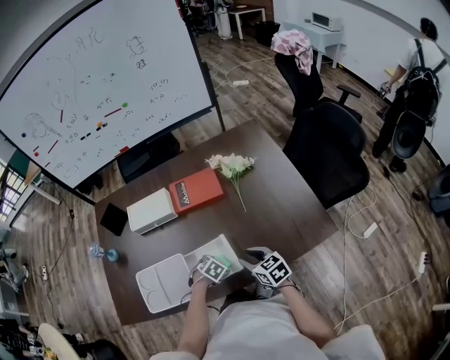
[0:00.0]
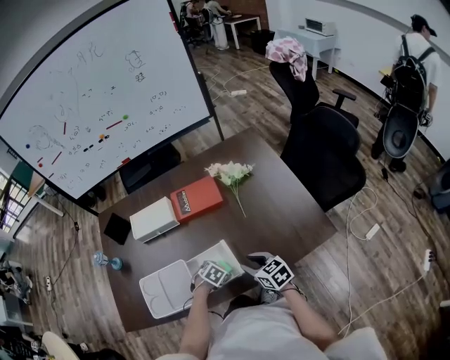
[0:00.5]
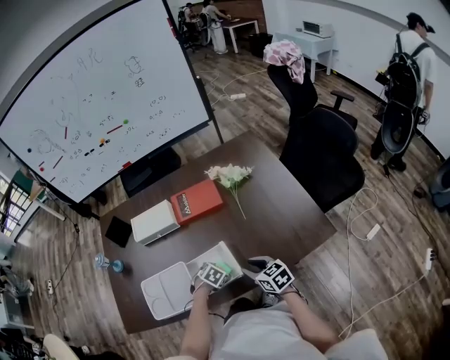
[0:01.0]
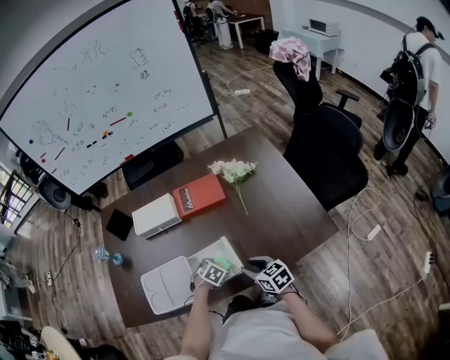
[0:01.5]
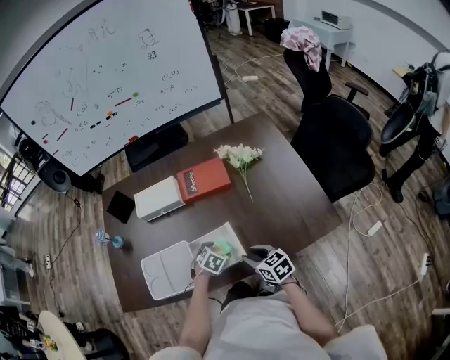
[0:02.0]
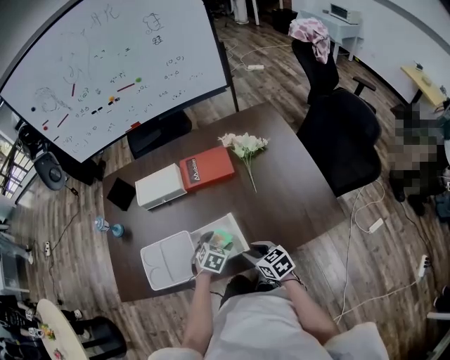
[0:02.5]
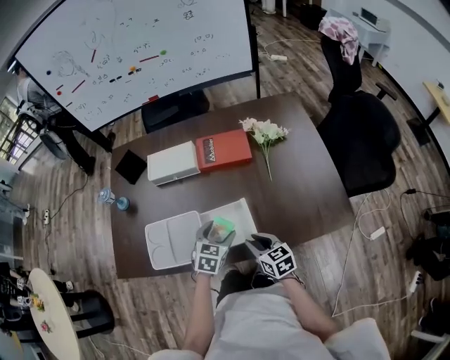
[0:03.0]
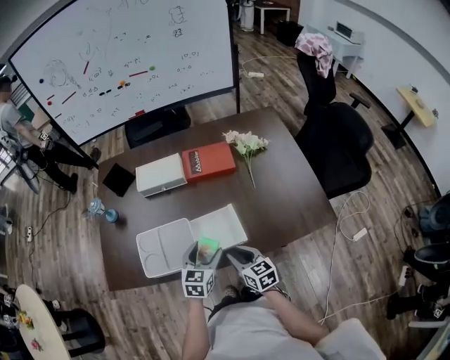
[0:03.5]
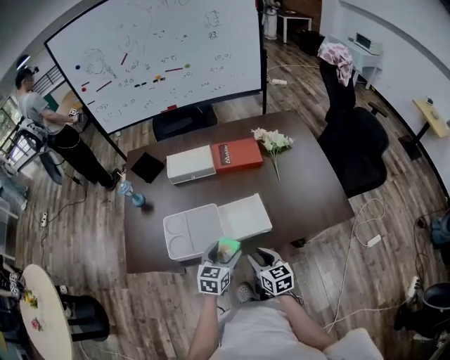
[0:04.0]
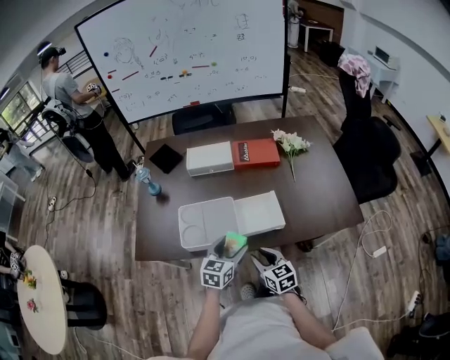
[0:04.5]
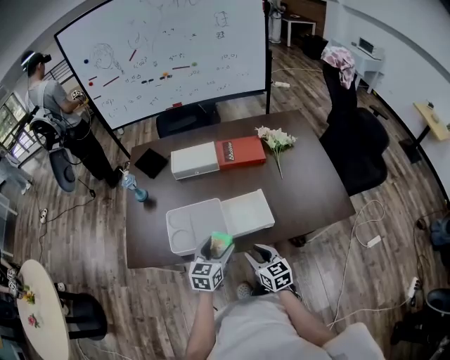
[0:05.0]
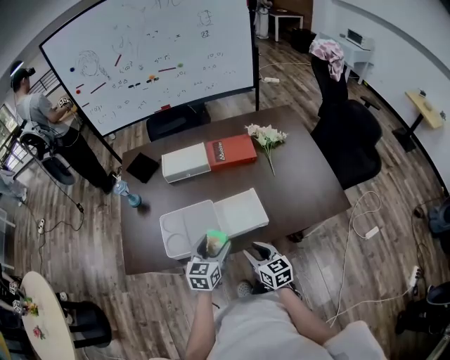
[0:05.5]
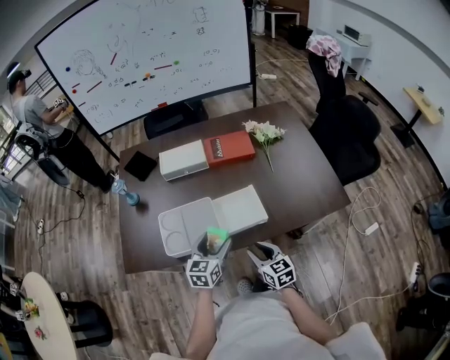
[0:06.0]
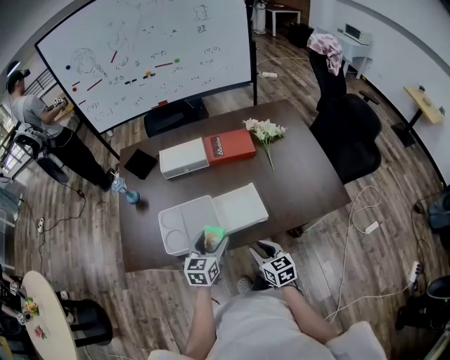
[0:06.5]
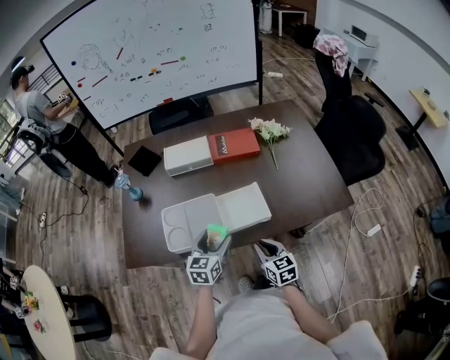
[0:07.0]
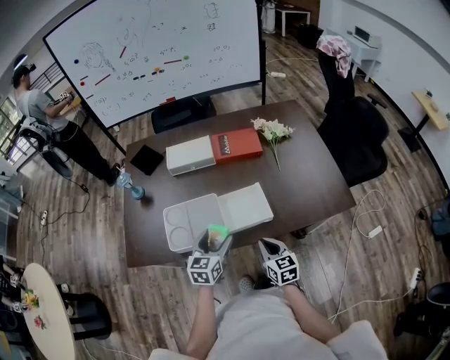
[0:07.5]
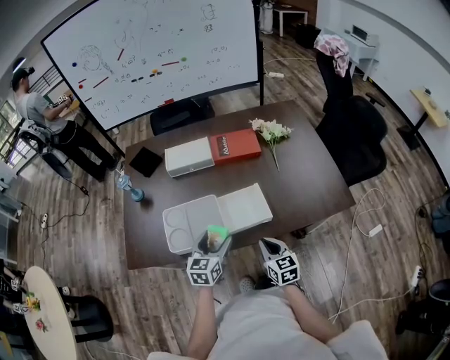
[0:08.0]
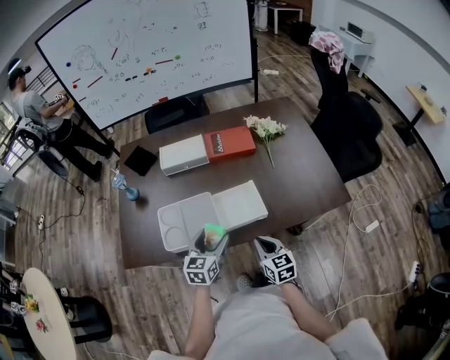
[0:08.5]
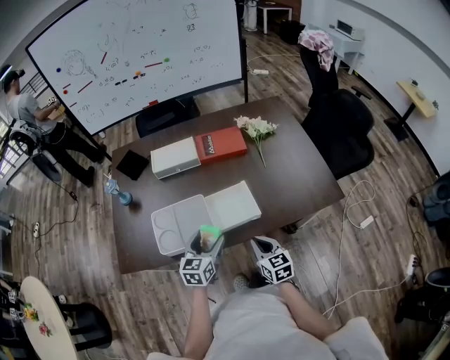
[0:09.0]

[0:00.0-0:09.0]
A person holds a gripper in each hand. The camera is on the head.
0:00.0 to 0:02.0: The grippers stay close to where they were, moving slightly.
0:02.0 to 0:04.5: The left gripper shifts some 25 cm upward, backward and to the left, and tips its fingers upward by about 40 degrees; the right gripper heads to the left and backward, covering about 20 cm.
0:04.5 to 0:07.0: The right gripper travels to the right by some 5 cm.
0:07.0 to 0:09.0: The grippers move only a little.

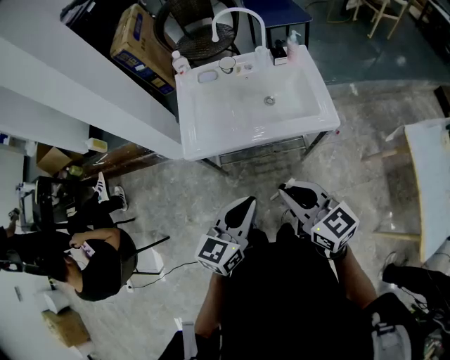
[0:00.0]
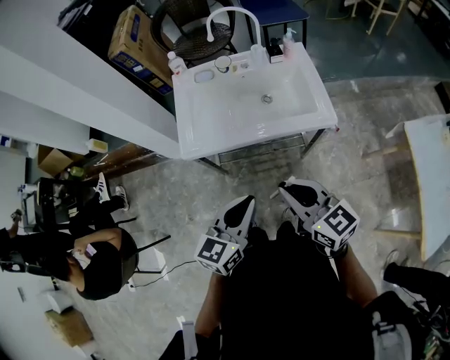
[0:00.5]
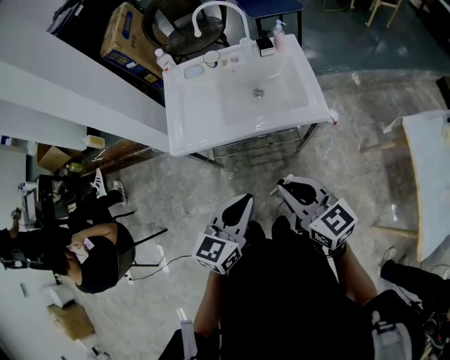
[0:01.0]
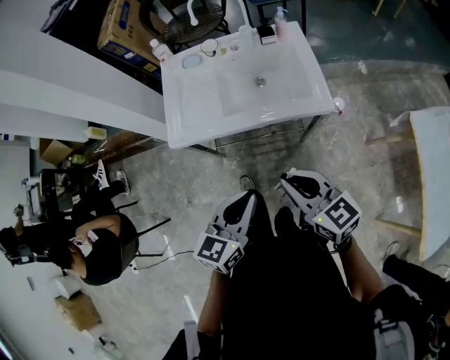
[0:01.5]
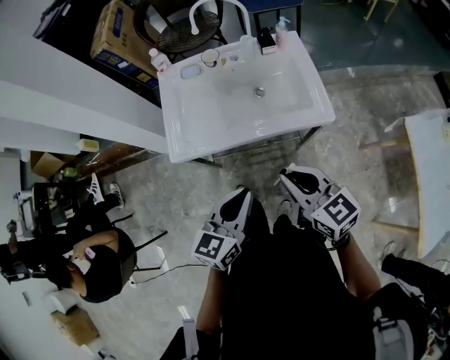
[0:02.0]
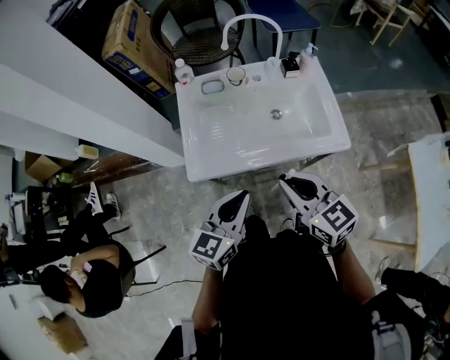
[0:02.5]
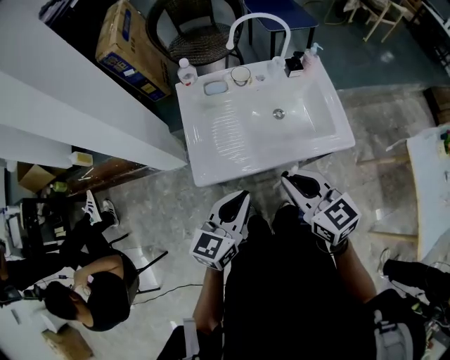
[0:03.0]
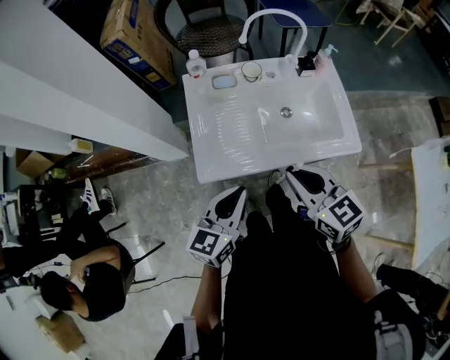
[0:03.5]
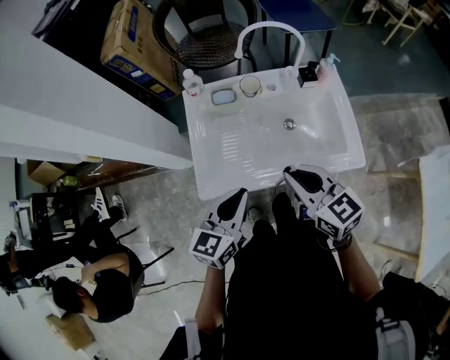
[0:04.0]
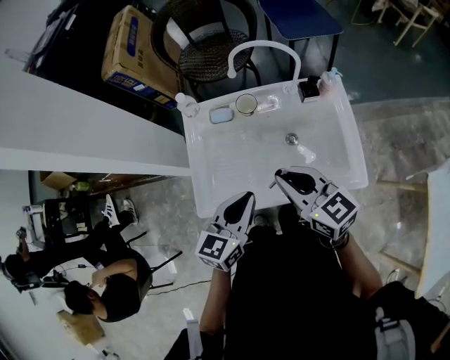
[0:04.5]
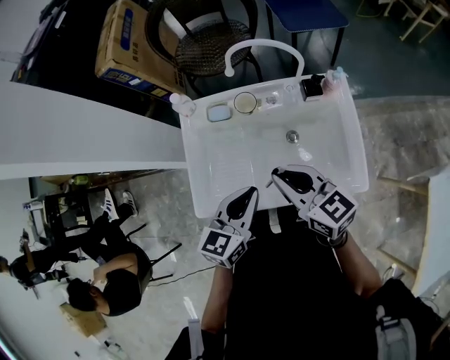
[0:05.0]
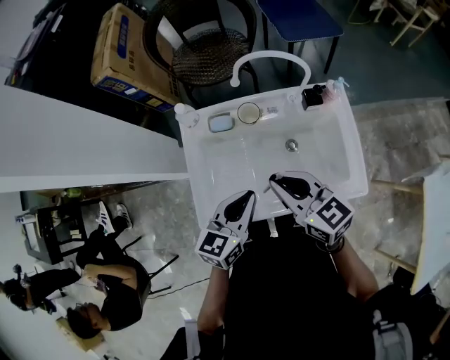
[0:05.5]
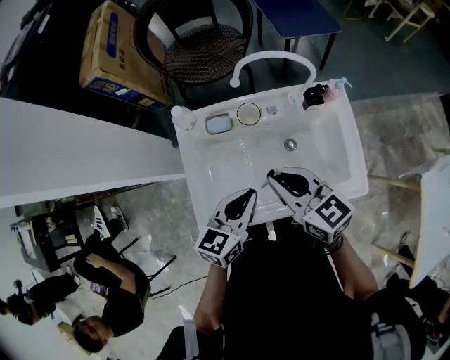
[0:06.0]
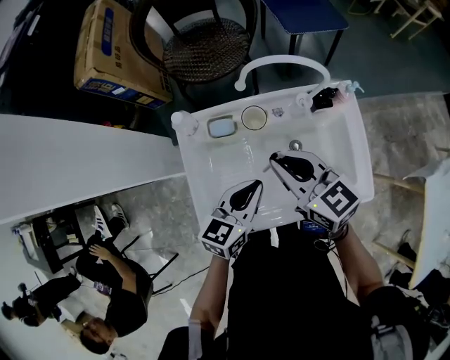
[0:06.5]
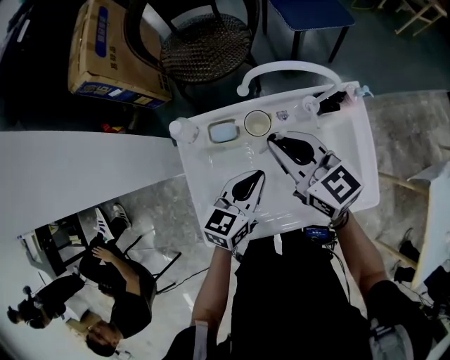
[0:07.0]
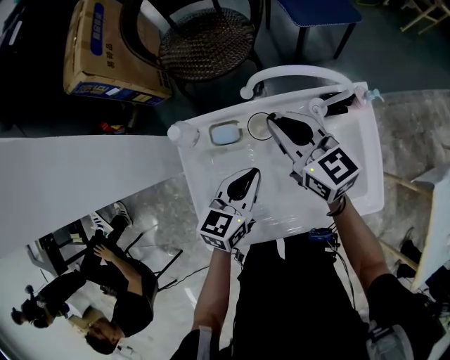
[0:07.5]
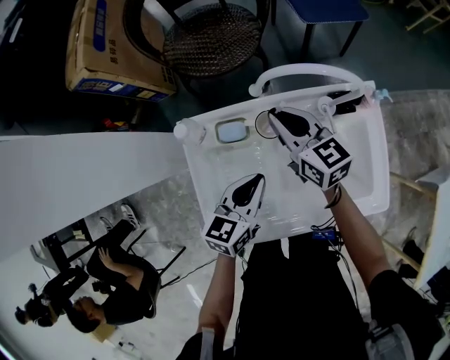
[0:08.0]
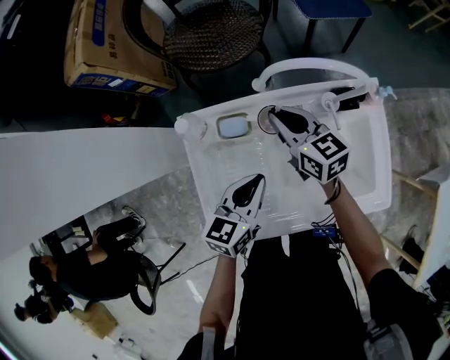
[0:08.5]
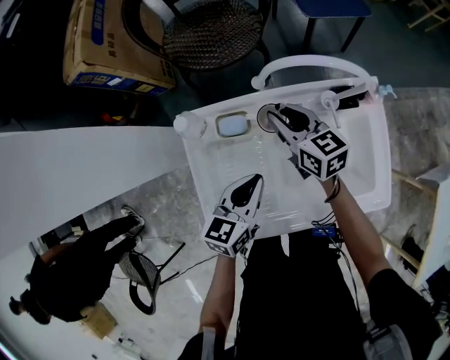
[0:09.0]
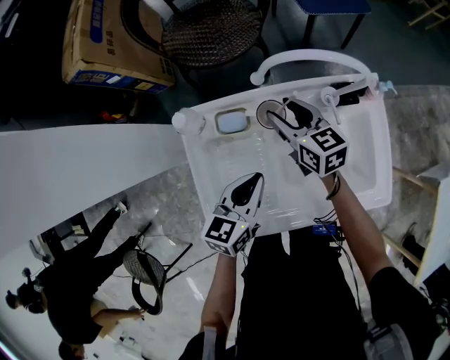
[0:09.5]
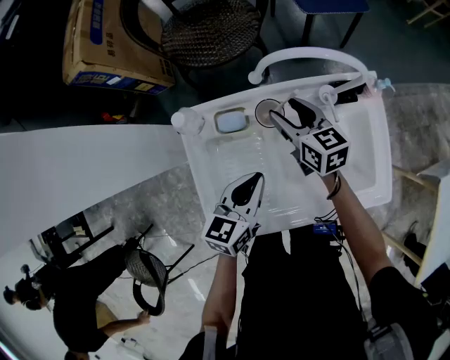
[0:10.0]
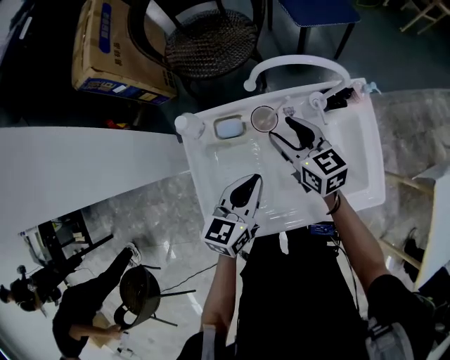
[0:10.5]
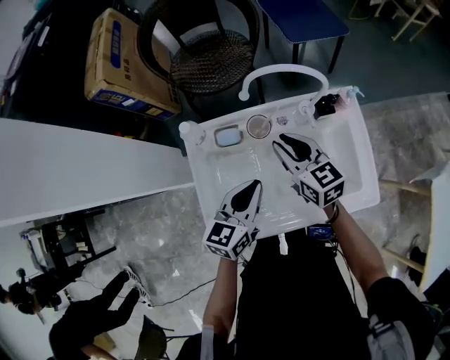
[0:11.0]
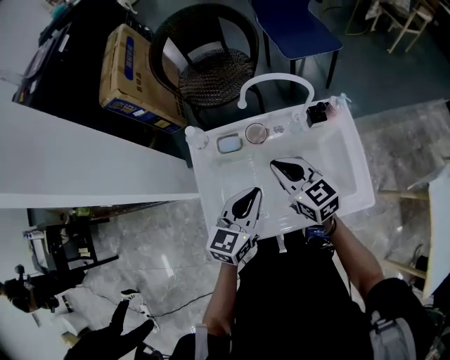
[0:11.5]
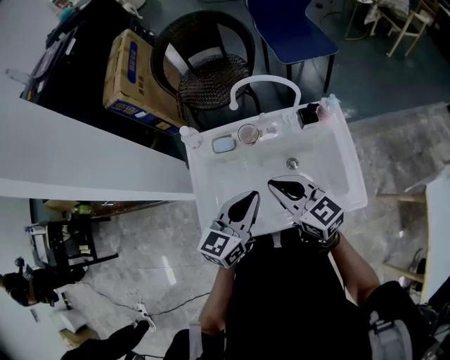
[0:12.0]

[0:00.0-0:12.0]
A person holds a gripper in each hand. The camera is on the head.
0:00.0 to 0:02.0: The left gripper ends up approximately 5 cm from where it was. The right gripper is displaced forward and to the right by roughly 10 cm.
0:02.0 to 0:04.0: The grippers both shift forward and to the left by approximately 20 cm.
0:04.0 to 0:06.0: The left gripper shifts roughly 15 cm forward and to the right. The right gripper is displaced forward by some 15 cm.
0:06.0 to 0:08.0: The left gripper is displaced forward and downward by approximately 15 cm; the right gripper is displaced forward and downward by roughly 25 cm.
0:08.0 to 0:10.0: The right gripper heads downward, covering roughly 5 cm, and opens its fingers.
0:10.0 to 0:12.0: The right gripper travels backward and upward by approximately 30 cm, rotates roughly 20 degrees, and closes up, while the left gripper heads upward, backward and to the right, covering about 15 cm.

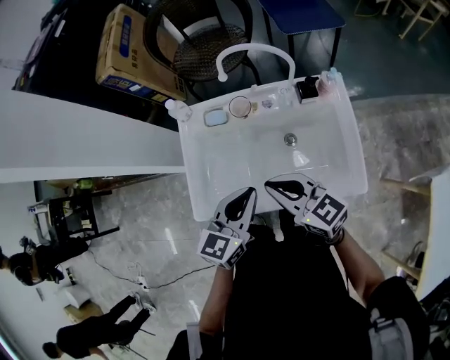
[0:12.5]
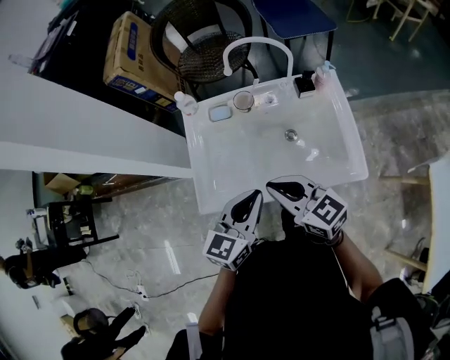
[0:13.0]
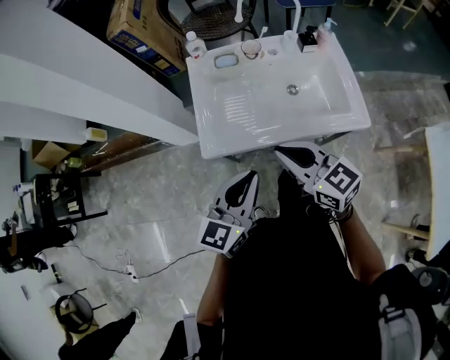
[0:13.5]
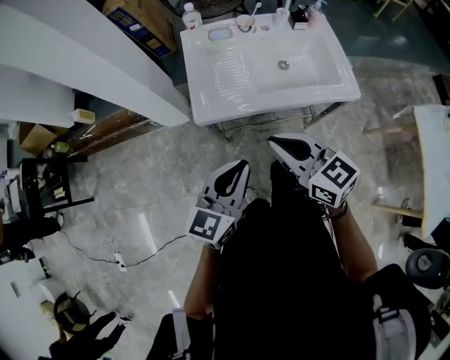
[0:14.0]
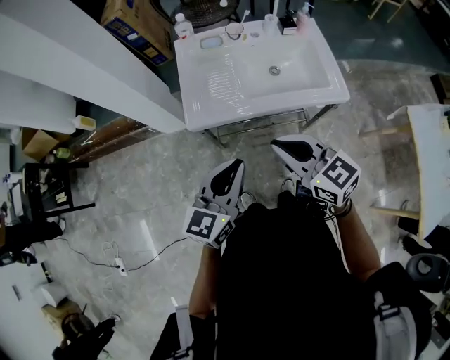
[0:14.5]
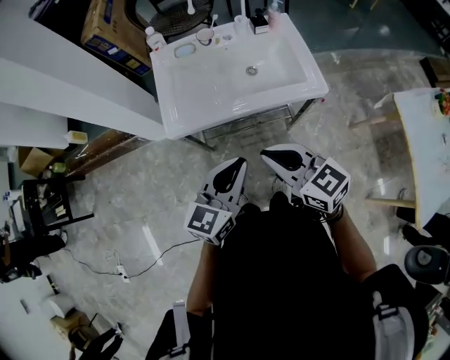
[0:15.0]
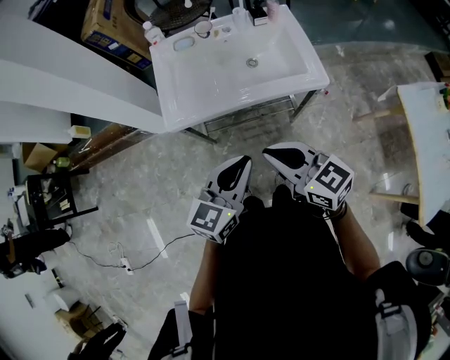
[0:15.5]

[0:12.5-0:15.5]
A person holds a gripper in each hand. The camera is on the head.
0:12.5 to 0:14.0: Both grippers move backward and to the left, some 30 cm.
0:14.0 to 0:15.5: The right gripper travels to the right and backward by some 15 cm, while the left gripper heads to the right, covering approximately 15 cm.

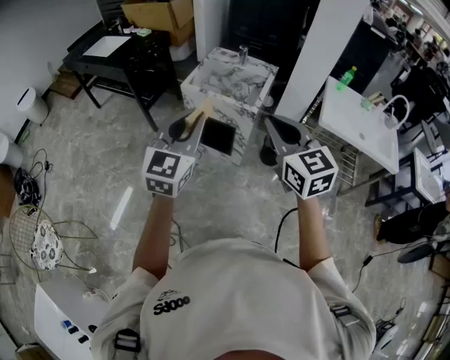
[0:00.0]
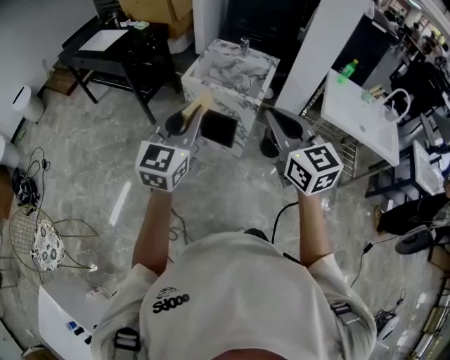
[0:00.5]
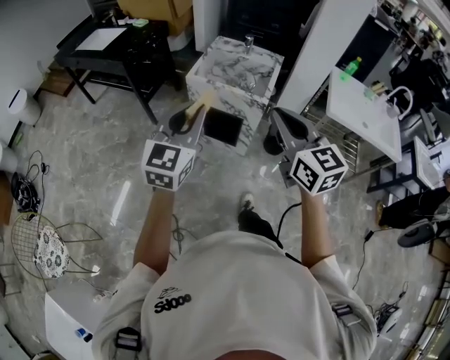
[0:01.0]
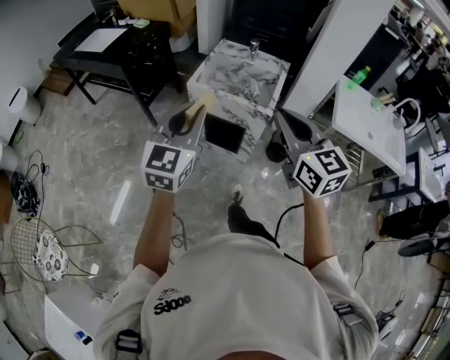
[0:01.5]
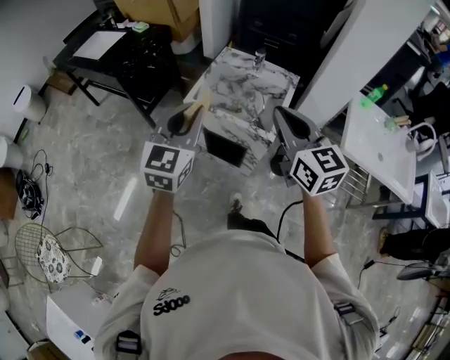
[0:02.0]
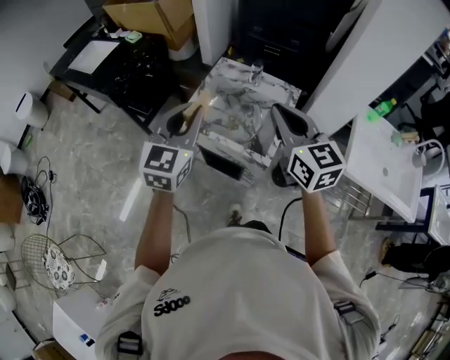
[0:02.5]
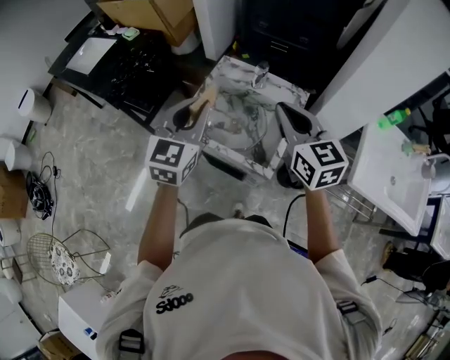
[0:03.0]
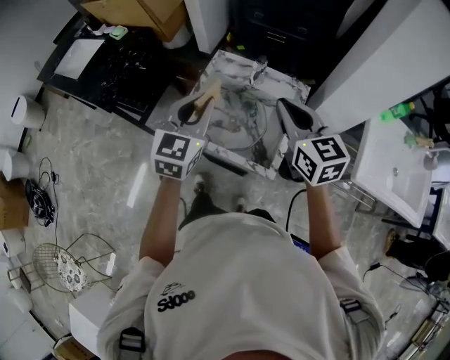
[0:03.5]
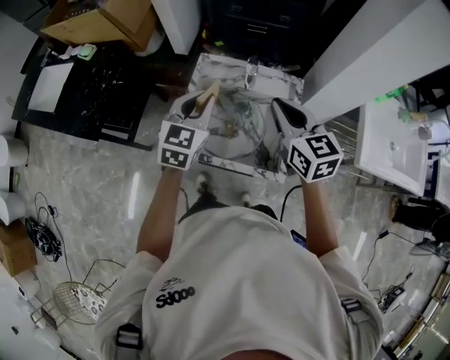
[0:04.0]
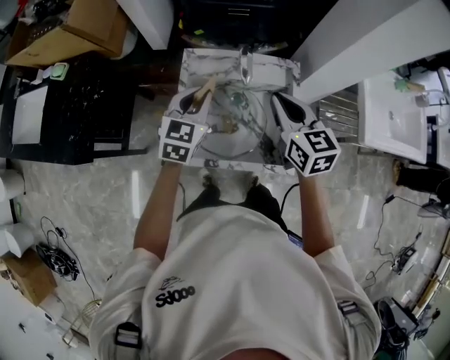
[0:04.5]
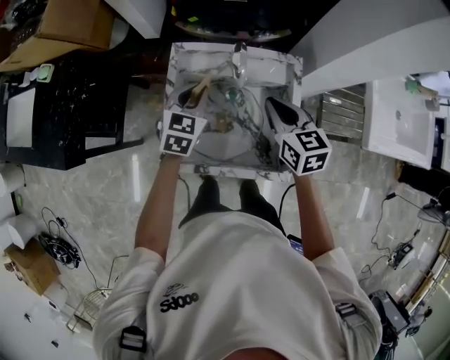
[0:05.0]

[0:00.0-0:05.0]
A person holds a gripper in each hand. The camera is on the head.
0:00.0 to 0:02.5: Both grippers move forward, about 35 cm.
0:02.5 to 0:05.0: The two grippers go approximately 40 cm forward and downward. The left gripper turns by about 30 degrees. Meanwhile the right gripper rotates roughly 30 degrees.
